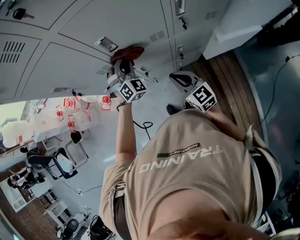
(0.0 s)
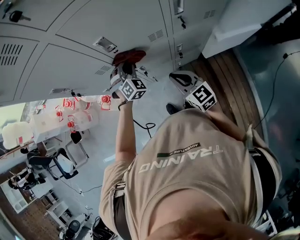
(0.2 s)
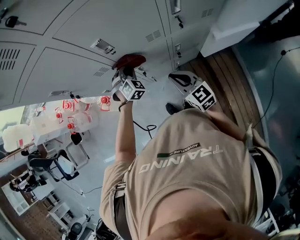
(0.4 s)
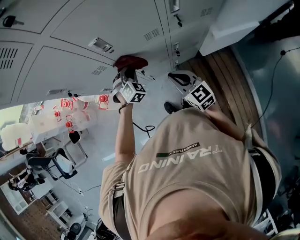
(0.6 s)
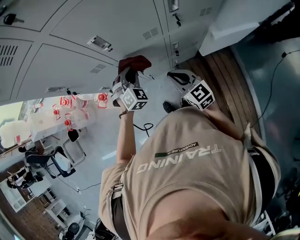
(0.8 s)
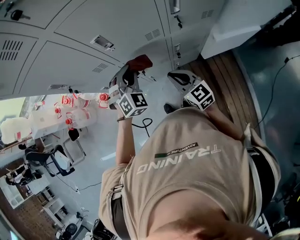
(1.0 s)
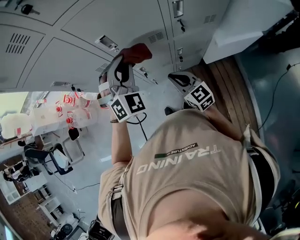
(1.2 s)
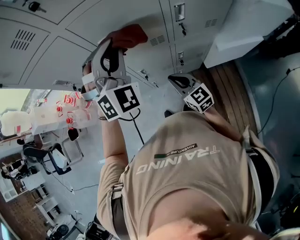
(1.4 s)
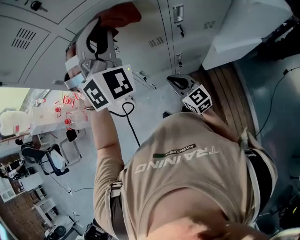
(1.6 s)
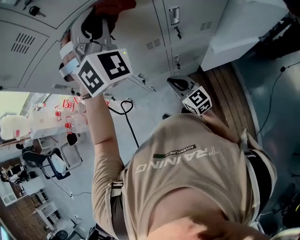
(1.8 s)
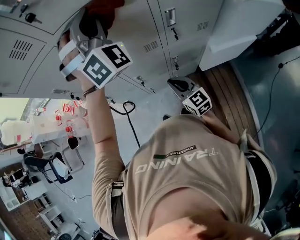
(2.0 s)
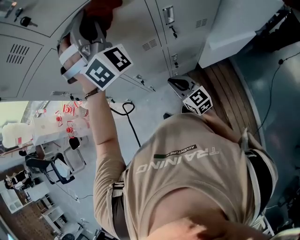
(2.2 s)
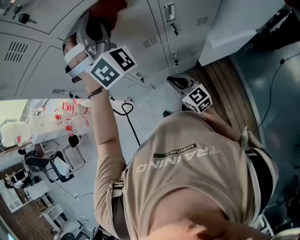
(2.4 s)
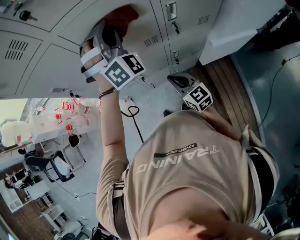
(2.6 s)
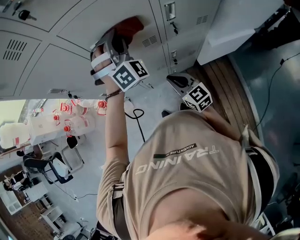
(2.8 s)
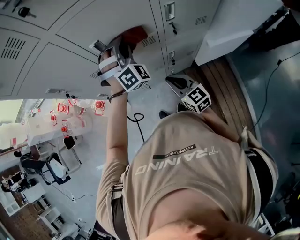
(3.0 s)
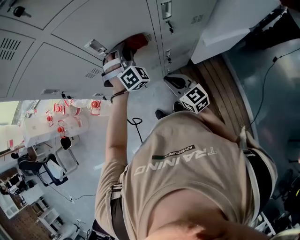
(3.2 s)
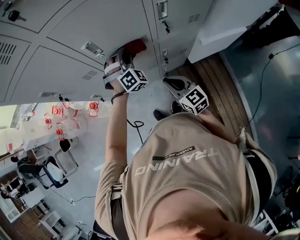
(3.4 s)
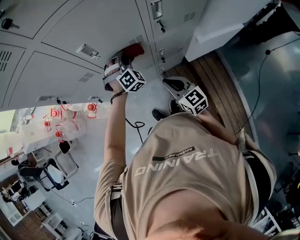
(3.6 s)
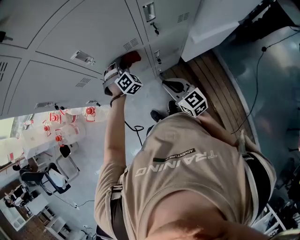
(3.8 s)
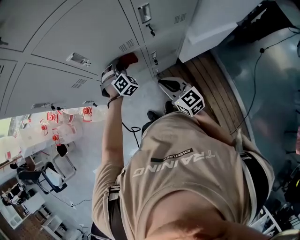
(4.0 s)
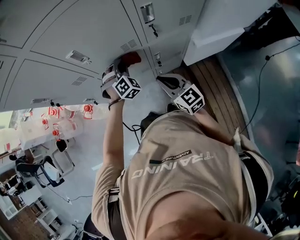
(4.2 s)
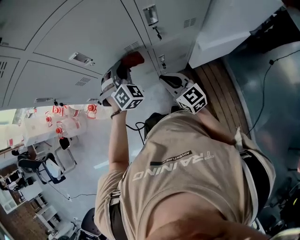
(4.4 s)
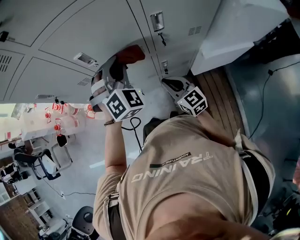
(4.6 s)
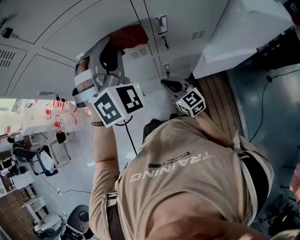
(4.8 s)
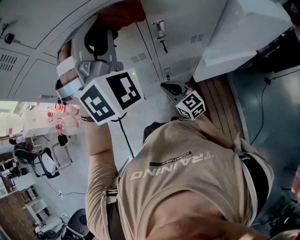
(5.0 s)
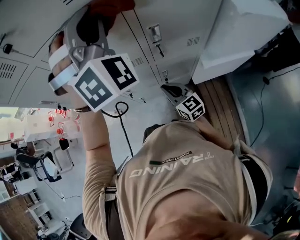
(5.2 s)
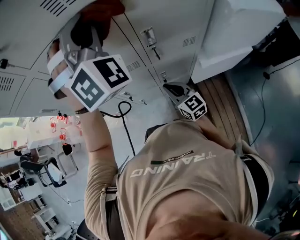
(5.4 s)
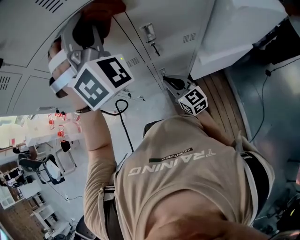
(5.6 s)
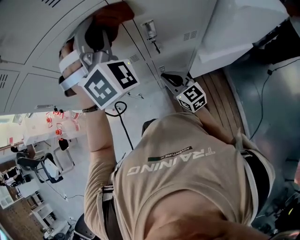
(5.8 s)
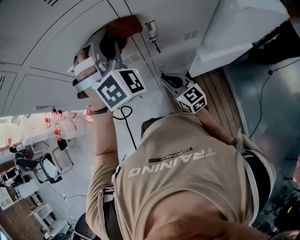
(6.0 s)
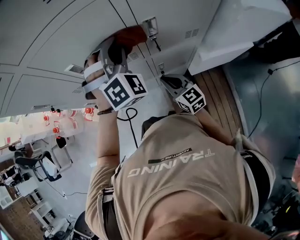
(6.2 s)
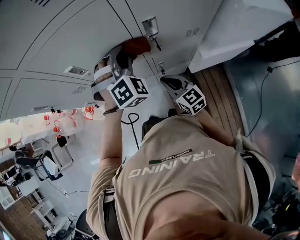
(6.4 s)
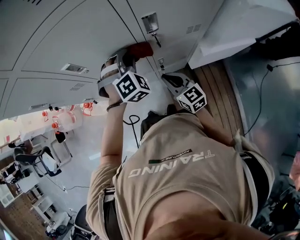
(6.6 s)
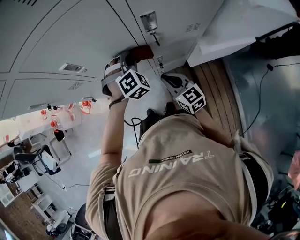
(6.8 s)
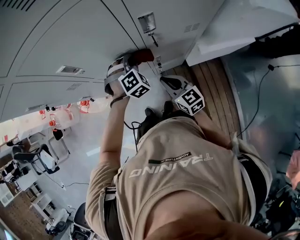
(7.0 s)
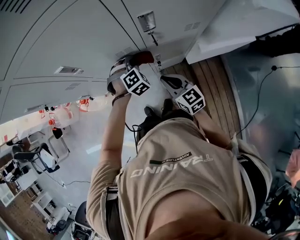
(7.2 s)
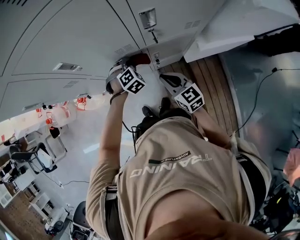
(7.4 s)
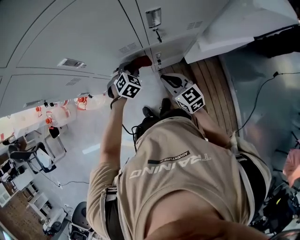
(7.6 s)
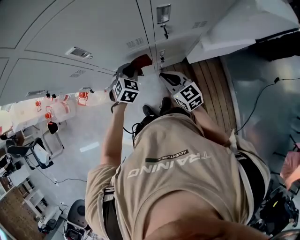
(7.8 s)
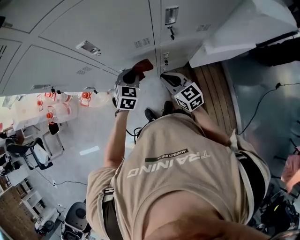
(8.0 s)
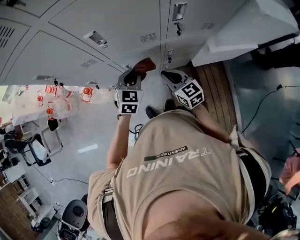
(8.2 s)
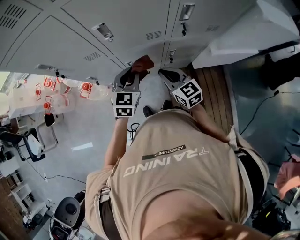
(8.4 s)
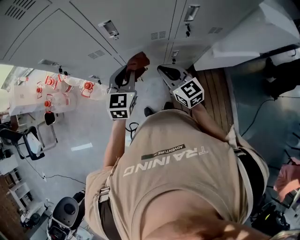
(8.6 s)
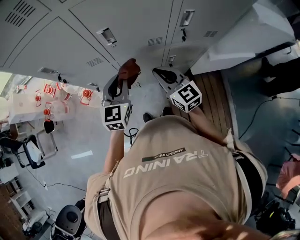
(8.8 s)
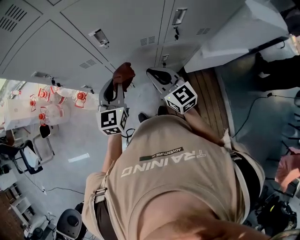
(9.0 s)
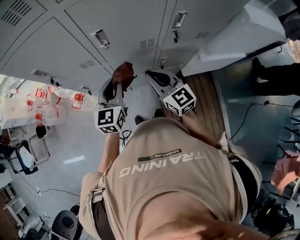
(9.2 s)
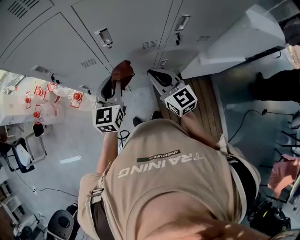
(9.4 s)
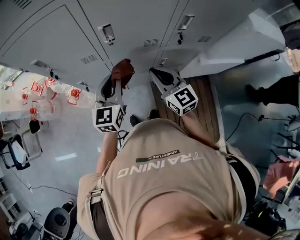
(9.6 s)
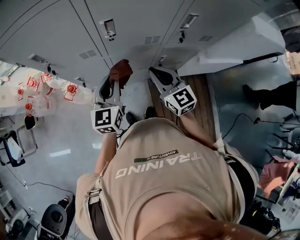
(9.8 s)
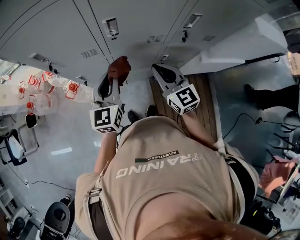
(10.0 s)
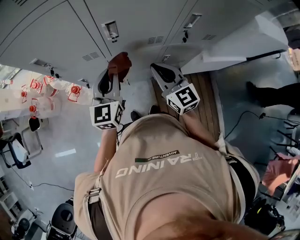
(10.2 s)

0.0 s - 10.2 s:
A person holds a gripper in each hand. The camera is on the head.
0.0 s - 1.4 s: The left gripper shifts about 25 cm upward.
1.4 s - 3.0 s: The left gripper goes approximately 15 cm downward and forward.
3.0 s - 4.4 s: The right gripper travels to the right by roughly 5 cm. The left gripper heads downward, covering roughly 10 cm.
4.4 s - 5.8 s: The left gripper travels upward by some 30 cm, and rotates roughly 30 degrees. The right gripper moves to the right, approximately 5 cm.
5.8 s - 7.2 s: The right gripper shifts some 5 cm downward. The left gripper shifts roughly 40 cm downward, and angles its fingers downward, by approximately 50 degrees.
7.2 s - 8.8 s: The left gripper shifts approximately 30 cm to the left, upward and backward, and rotates around the line of its fingers by roughly 60 degrees, counterclockwise from behind, while the right gripper heads to the left and upward, covering roughly 20 cm.
8.8 s - 10.2 s: There are only small adjustments of the grippers.

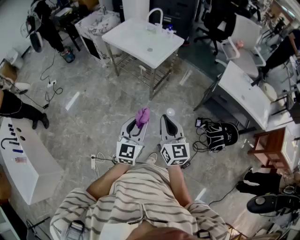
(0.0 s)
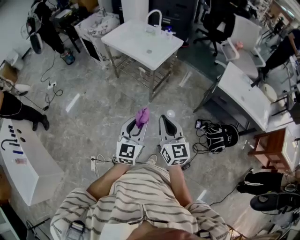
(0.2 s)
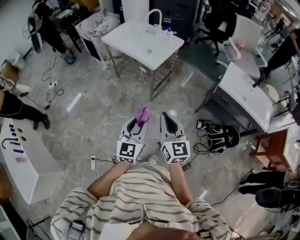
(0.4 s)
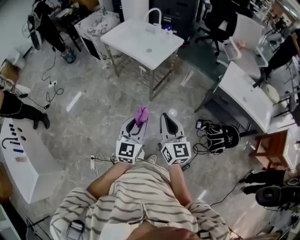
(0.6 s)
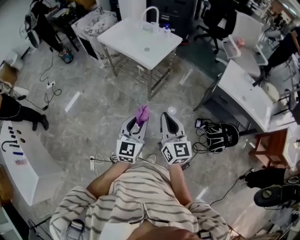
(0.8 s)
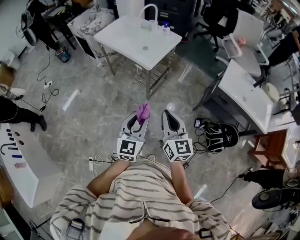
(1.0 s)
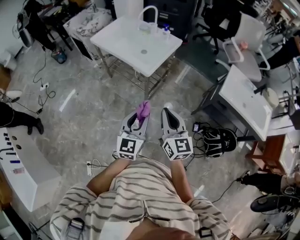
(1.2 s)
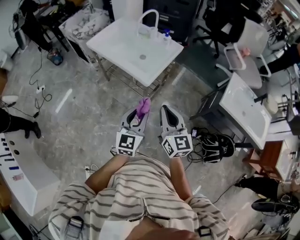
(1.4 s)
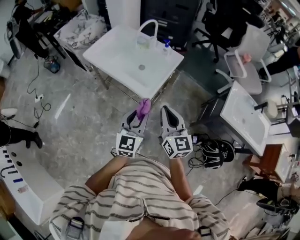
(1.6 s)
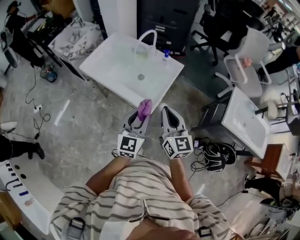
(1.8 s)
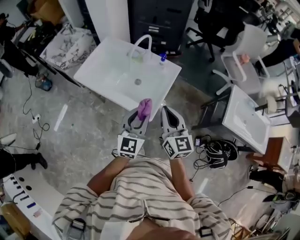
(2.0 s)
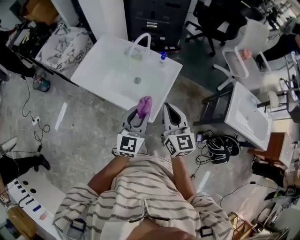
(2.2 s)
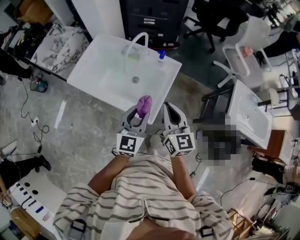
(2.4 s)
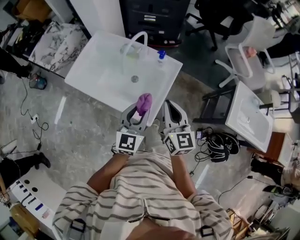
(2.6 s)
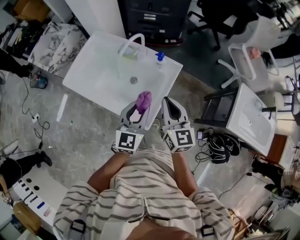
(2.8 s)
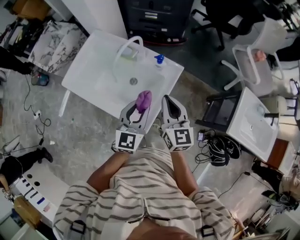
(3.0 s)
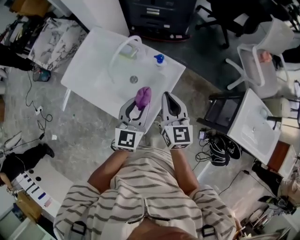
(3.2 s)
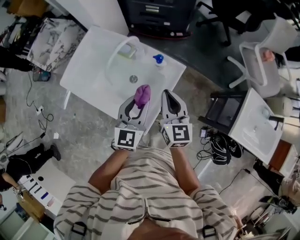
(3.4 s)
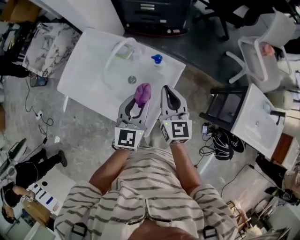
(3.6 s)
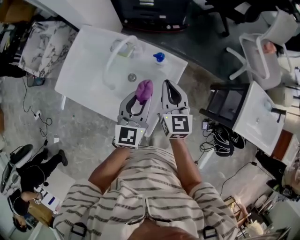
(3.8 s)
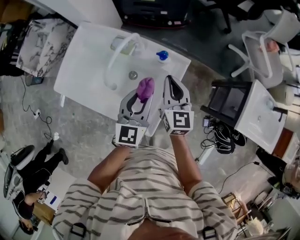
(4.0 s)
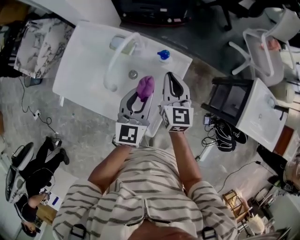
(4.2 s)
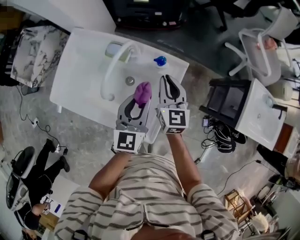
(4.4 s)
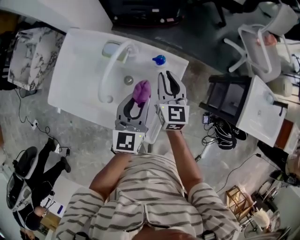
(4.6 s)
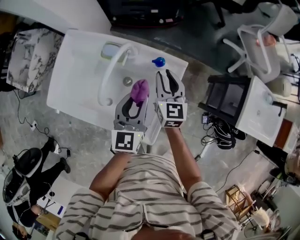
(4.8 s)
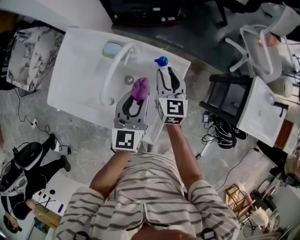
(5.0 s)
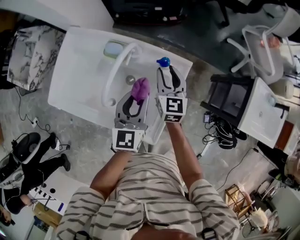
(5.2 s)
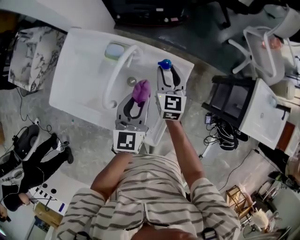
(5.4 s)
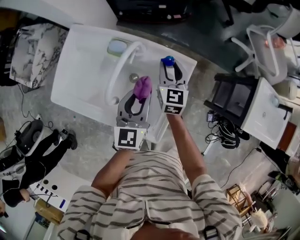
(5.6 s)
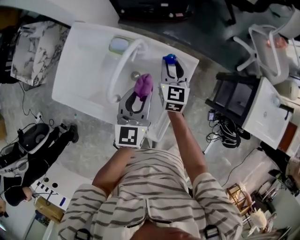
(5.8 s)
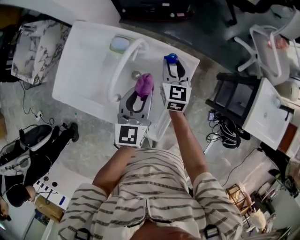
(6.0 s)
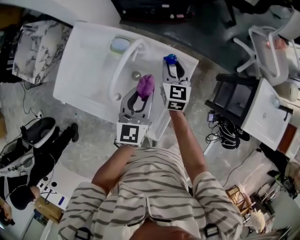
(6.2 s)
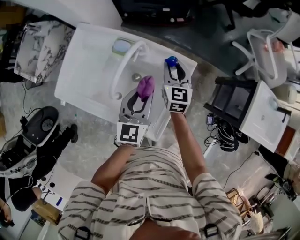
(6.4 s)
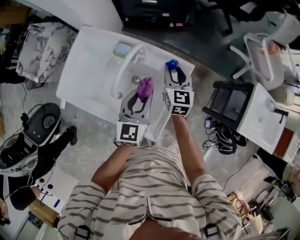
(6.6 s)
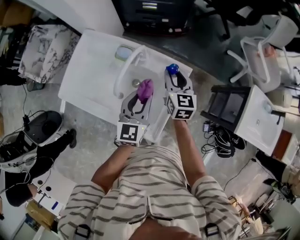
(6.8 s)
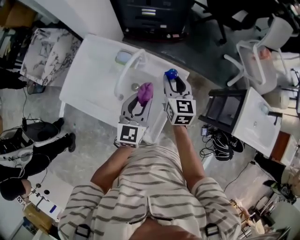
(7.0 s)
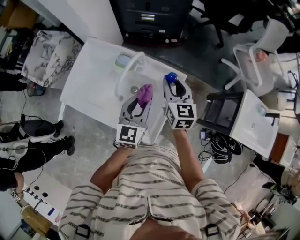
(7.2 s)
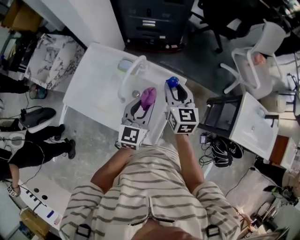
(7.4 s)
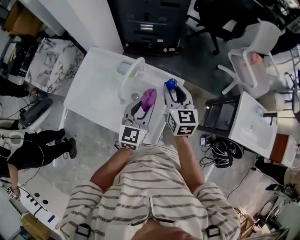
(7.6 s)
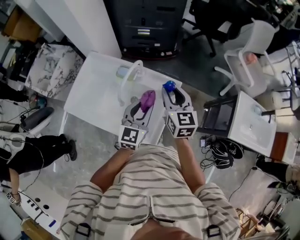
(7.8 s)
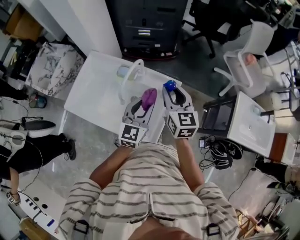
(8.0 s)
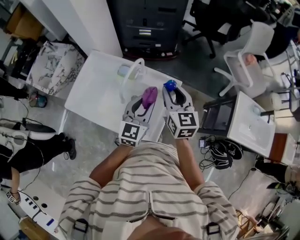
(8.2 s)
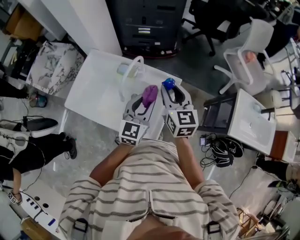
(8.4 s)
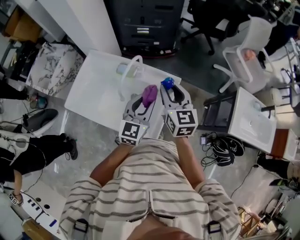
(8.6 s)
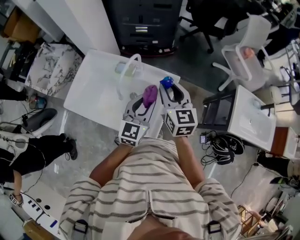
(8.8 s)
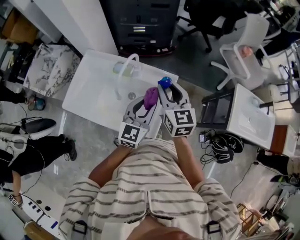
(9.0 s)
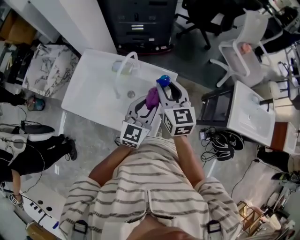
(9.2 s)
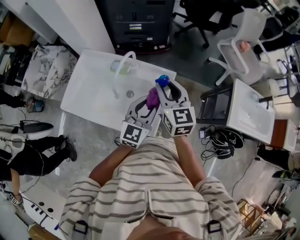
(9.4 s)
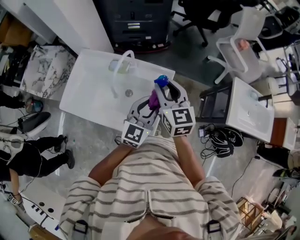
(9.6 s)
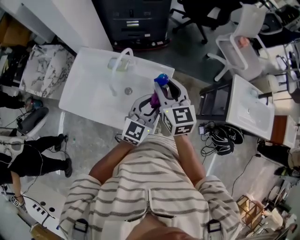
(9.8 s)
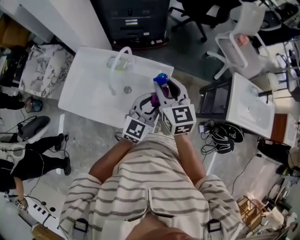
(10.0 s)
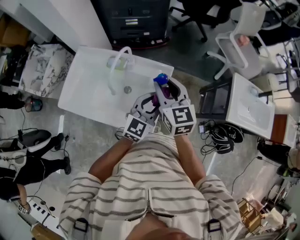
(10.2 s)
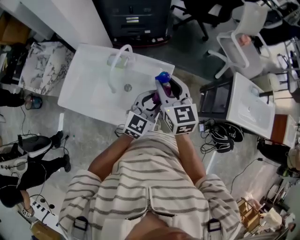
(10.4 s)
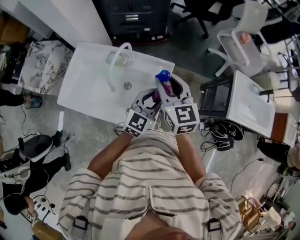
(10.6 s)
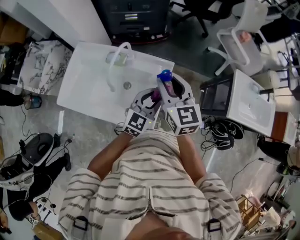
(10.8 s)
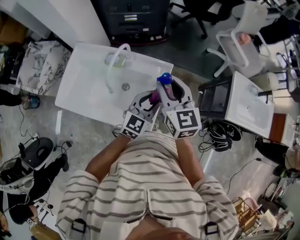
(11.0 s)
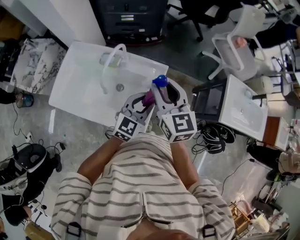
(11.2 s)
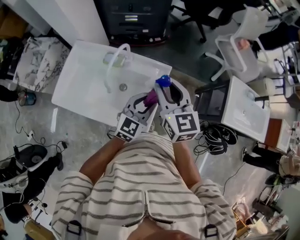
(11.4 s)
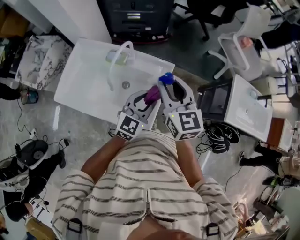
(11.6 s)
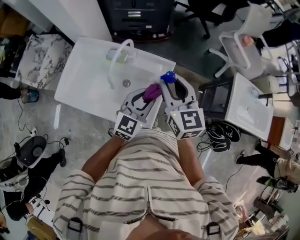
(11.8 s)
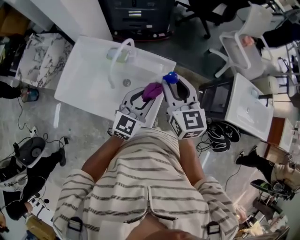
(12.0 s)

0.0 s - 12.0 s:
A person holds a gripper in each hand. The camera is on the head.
0.0 s - 1.6 s: Both grippers travel together forward, approximately 35 cm.
1.6 s - 3.0 s: Both grippers travel together forward, about 30 cm.
3.0 s - 4.4 s: The left gripper heads forward, covering approximately 10 cm. Meanwhile the right gripper shifts some 20 cm forward and downward.
4.4 s - 6.0 s: The right gripper heads forward and downward, covering about 10 cm, and opens its fingers.
6.0 s - 7.6 s: The right gripper is displaced upward and backward by approximately 20 cm; the left gripper moves upward, about 10 cm.
7.6 s - 9.0 s: The right gripper changes place by roughly 5 cm; the left gripper moves roughly 5 cm.
9.0 s - 10.4 s: The left gripper is displaced to the right by some 5 cm.
10.4 s - 12.0 s: The grippers stay close to where they were, moving slightly.

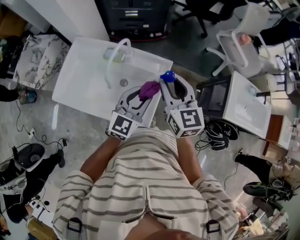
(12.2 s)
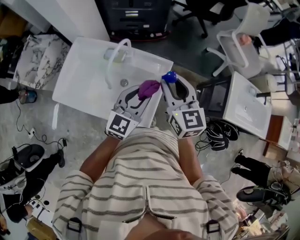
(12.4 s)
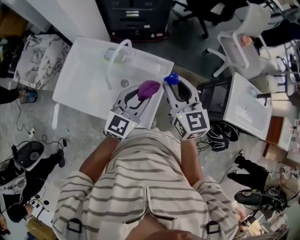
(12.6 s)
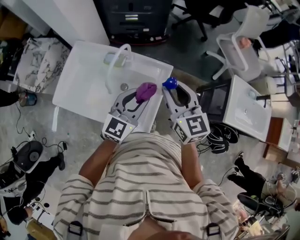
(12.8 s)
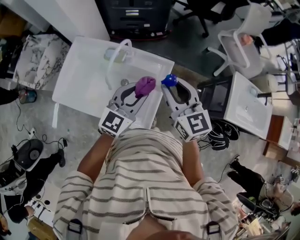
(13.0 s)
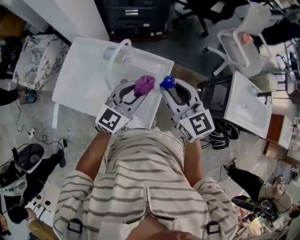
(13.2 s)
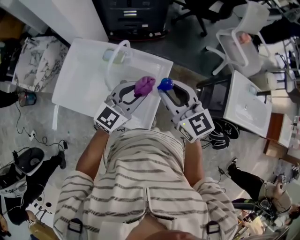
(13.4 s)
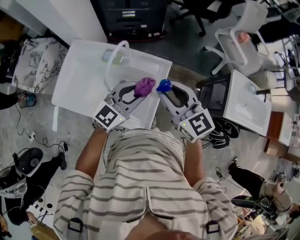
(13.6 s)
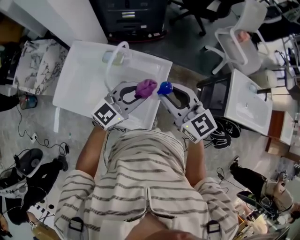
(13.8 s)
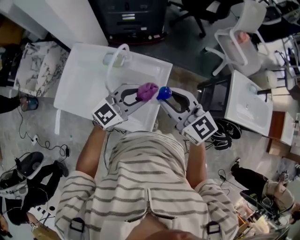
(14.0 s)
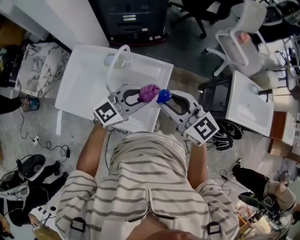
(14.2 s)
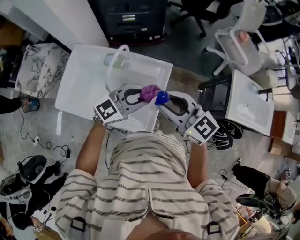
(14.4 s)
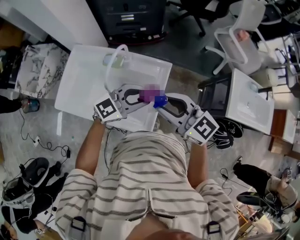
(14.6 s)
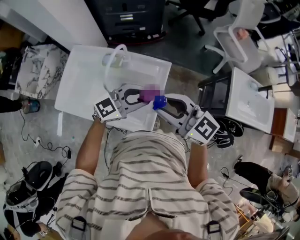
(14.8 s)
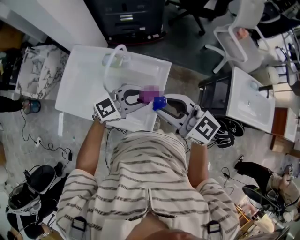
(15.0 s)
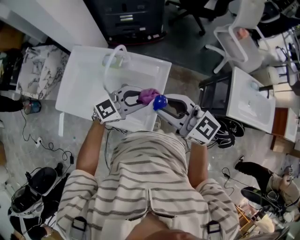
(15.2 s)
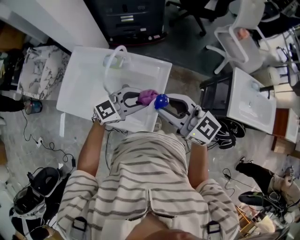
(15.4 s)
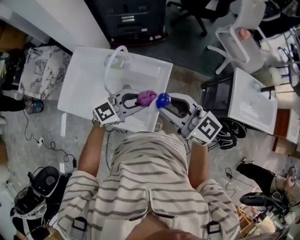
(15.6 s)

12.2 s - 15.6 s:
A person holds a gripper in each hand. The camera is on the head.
12.2 s - 13.8 s: The left gripper turns by roughly 20 degrees. Meanwhile the right gripper turns by about 20 degrees.
13.8 s - 15.6 s: The grippers stay close to where they were, moving slightly.
